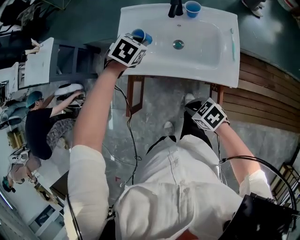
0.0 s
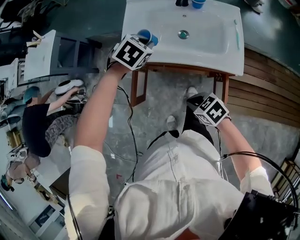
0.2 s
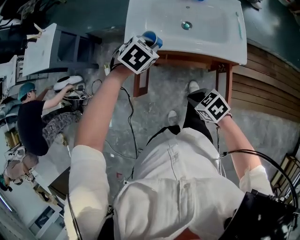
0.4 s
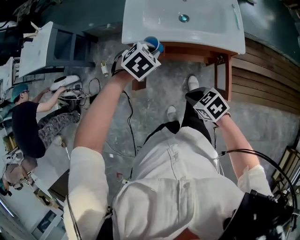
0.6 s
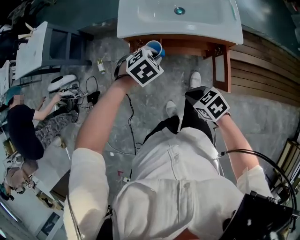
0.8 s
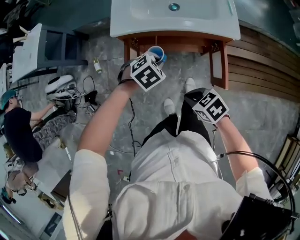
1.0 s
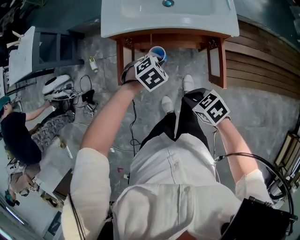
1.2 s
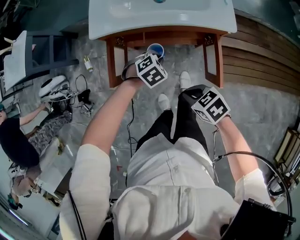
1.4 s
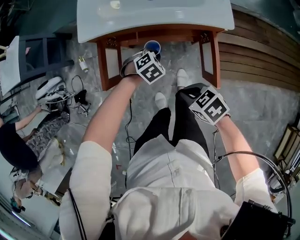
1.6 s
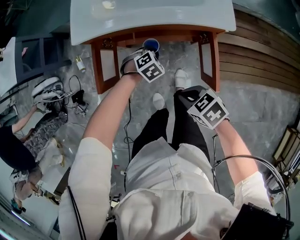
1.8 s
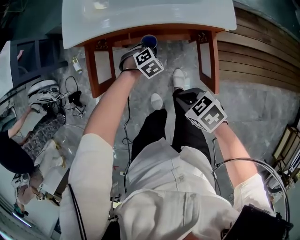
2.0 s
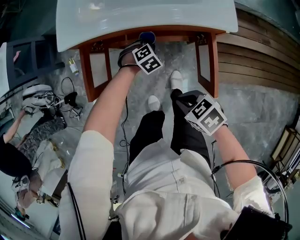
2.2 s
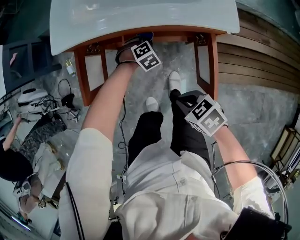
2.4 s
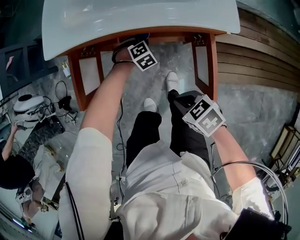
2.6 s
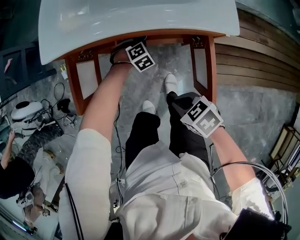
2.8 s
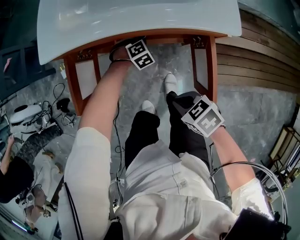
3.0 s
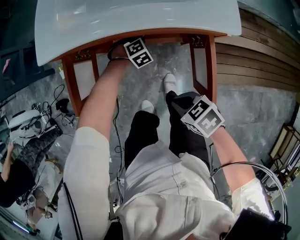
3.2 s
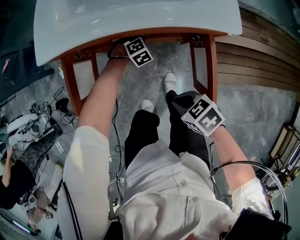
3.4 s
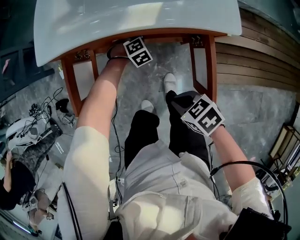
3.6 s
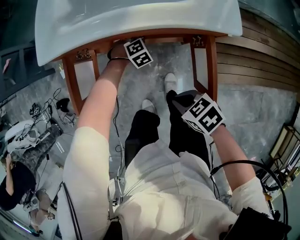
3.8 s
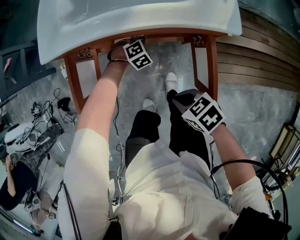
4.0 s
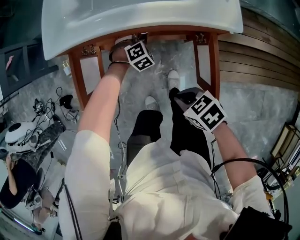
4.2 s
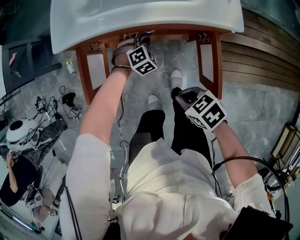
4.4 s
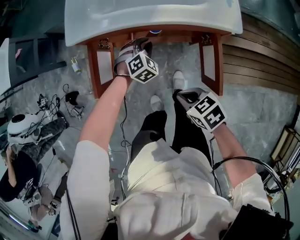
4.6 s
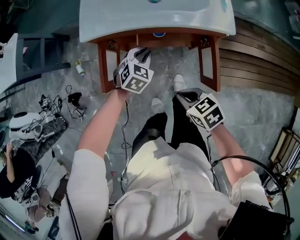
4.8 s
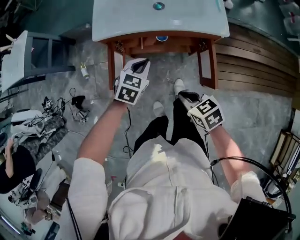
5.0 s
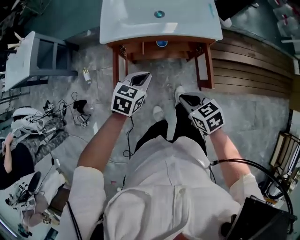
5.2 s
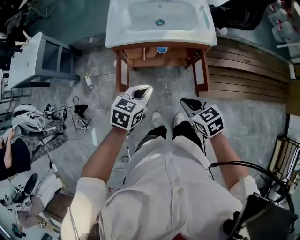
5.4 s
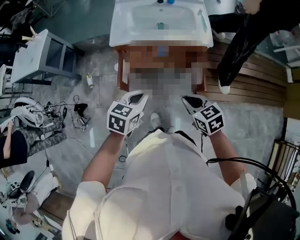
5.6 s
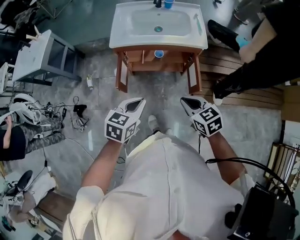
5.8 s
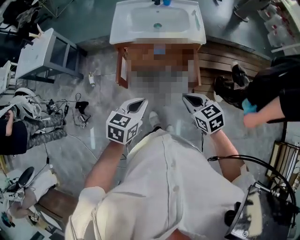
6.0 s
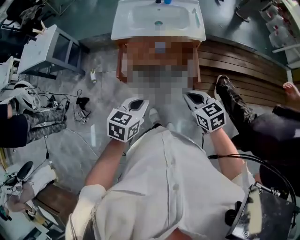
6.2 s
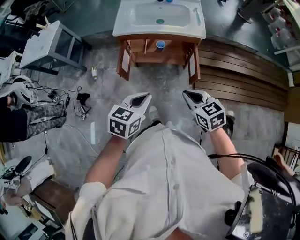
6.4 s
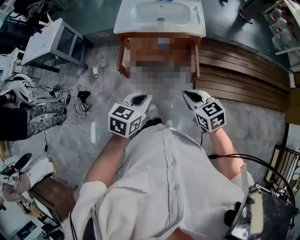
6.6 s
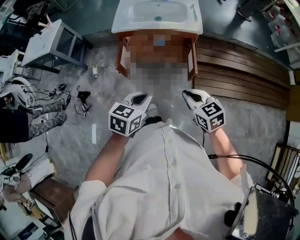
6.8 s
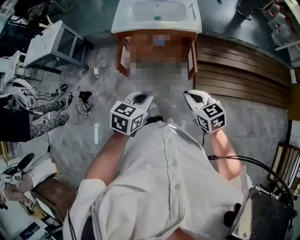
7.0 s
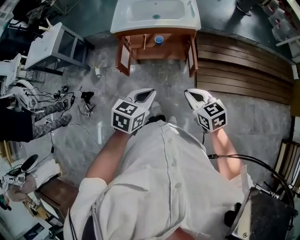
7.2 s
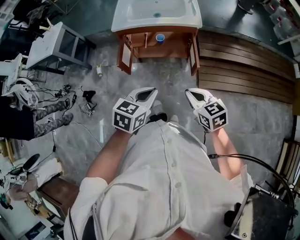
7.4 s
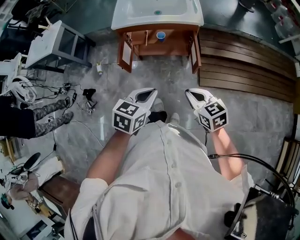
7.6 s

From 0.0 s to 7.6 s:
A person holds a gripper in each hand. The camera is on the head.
From 0.0 s to 1.6 s: The left gripper shifts by roughly 35 cm, and rotates about 20 degrees. The right gripper moves about 15 cm.
From 1.6 s to 3.0 s: The right gripper moves downward, about 10 cm, while the left gripper heads downward, covering about 15 cm.
From 3.0 s to 4.6 s: The right gripper travels upward by roughly 5 cm. Meanwhile the left gripper goes some 15 cm upward and to the left.
From 4.6 s to 6.0 s: The left gripper moves upward, about 35 cm, and rotates around the line of its fingers by approximately 50 degrees, counterclockwise from behind. Meanwhile the right gripper shifts some 25 cm upward, and swivels roughly 30 degrees.
From 6.0 s to 7.6 s: The left gripper is displaced backward and to the right by some 10 cm, while the right gripper travels backward by roughly 10 cm.

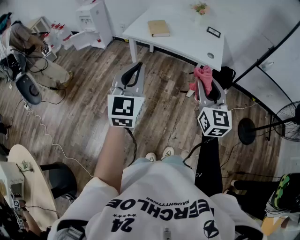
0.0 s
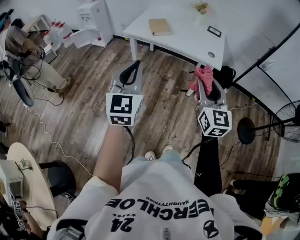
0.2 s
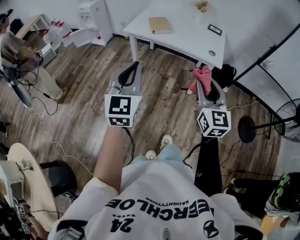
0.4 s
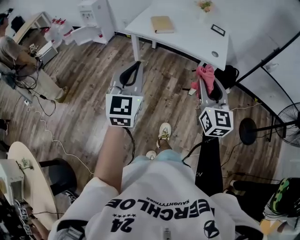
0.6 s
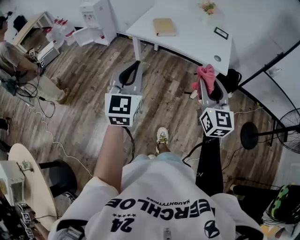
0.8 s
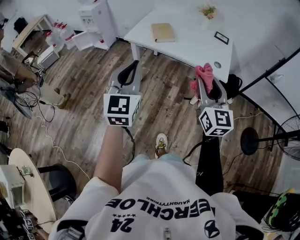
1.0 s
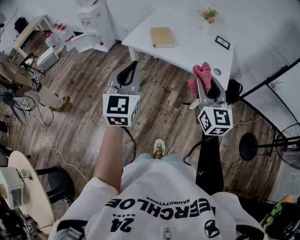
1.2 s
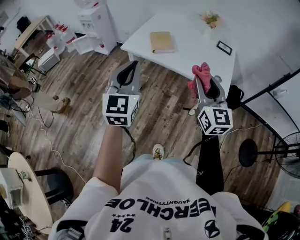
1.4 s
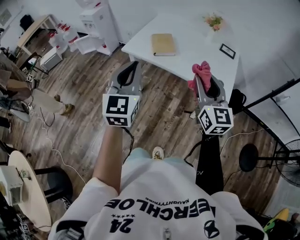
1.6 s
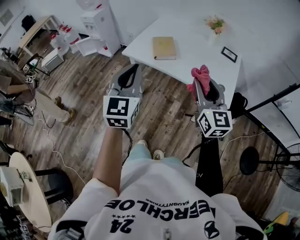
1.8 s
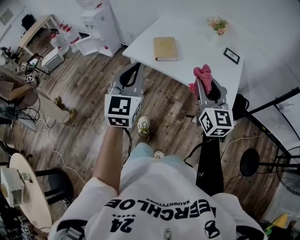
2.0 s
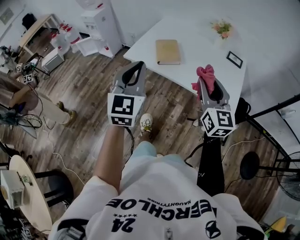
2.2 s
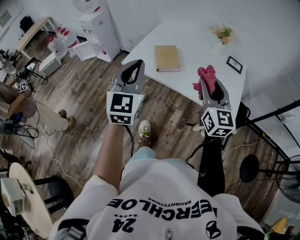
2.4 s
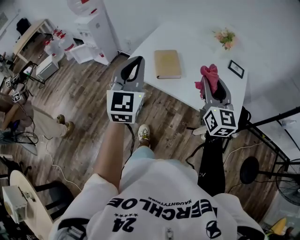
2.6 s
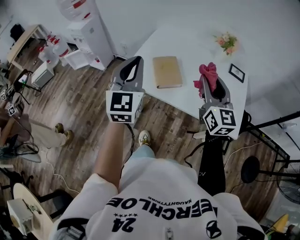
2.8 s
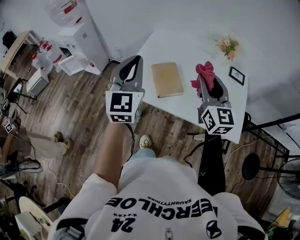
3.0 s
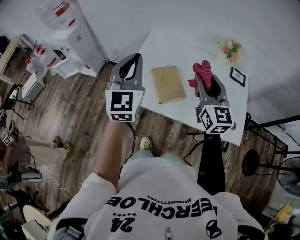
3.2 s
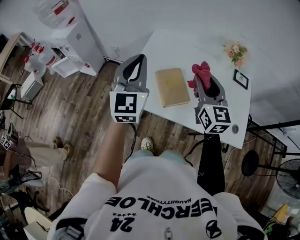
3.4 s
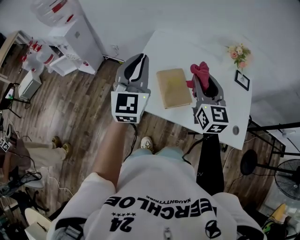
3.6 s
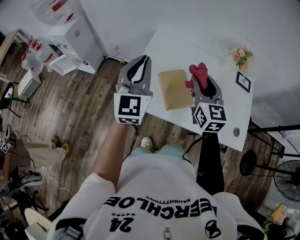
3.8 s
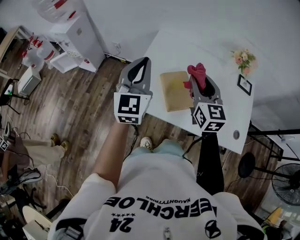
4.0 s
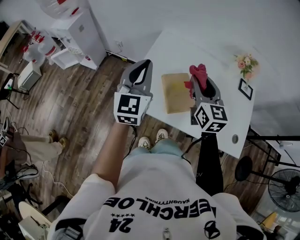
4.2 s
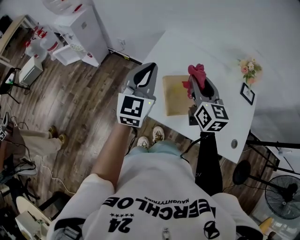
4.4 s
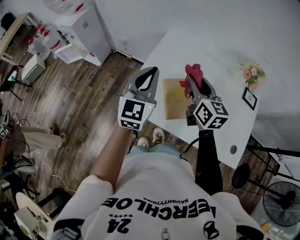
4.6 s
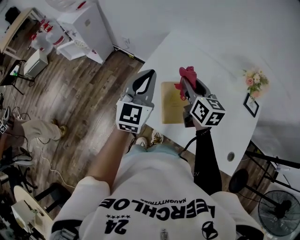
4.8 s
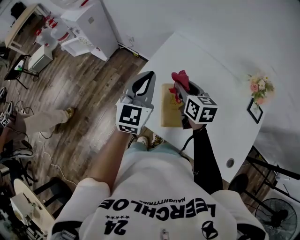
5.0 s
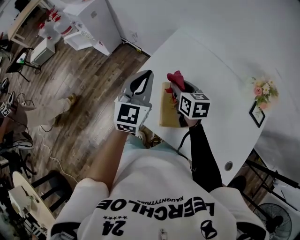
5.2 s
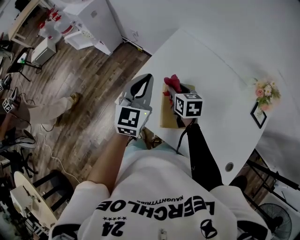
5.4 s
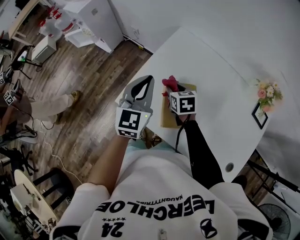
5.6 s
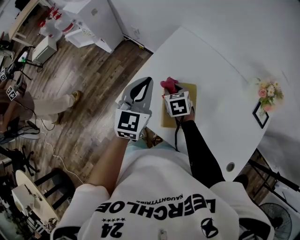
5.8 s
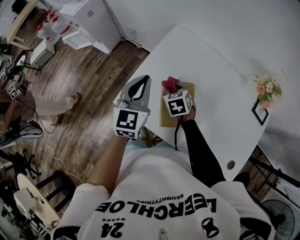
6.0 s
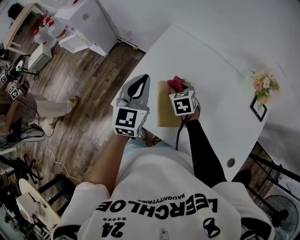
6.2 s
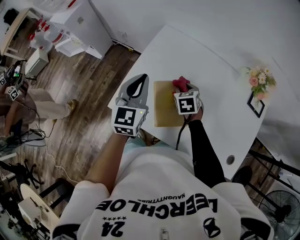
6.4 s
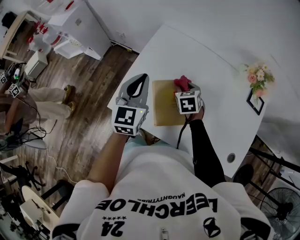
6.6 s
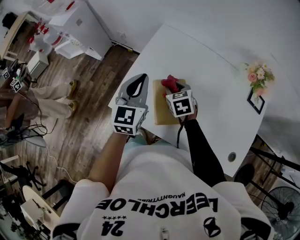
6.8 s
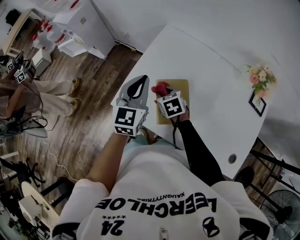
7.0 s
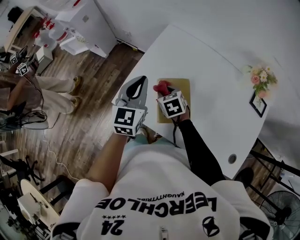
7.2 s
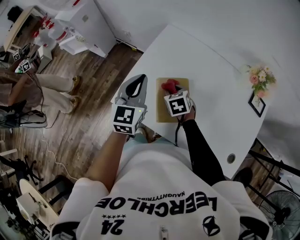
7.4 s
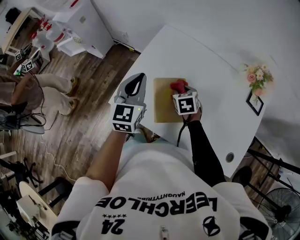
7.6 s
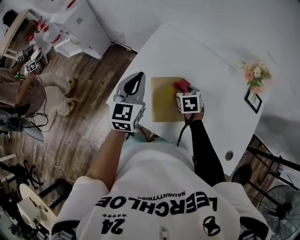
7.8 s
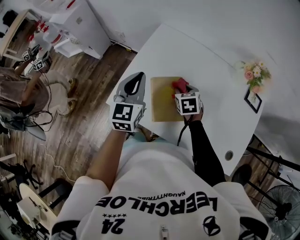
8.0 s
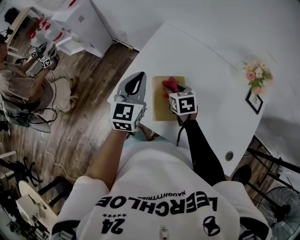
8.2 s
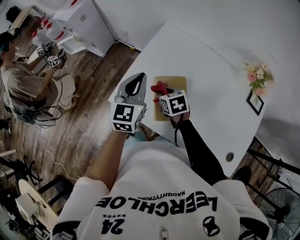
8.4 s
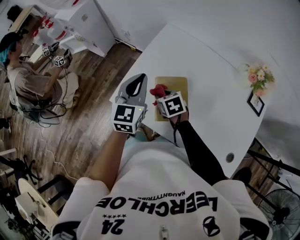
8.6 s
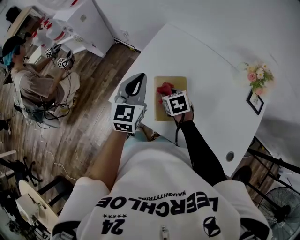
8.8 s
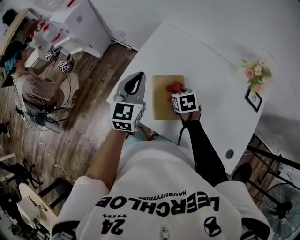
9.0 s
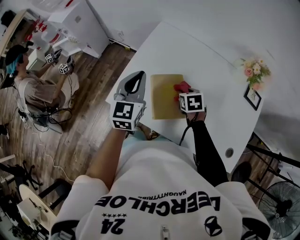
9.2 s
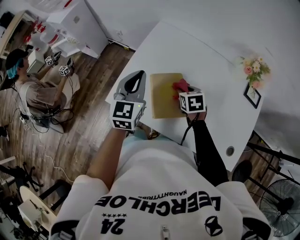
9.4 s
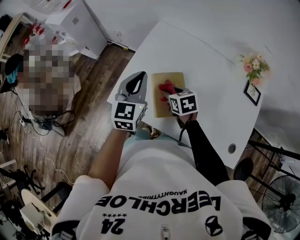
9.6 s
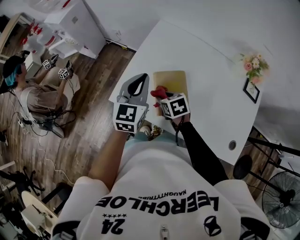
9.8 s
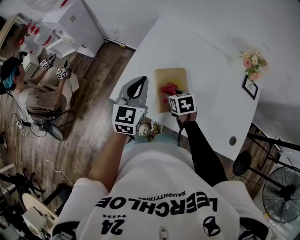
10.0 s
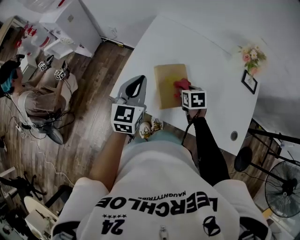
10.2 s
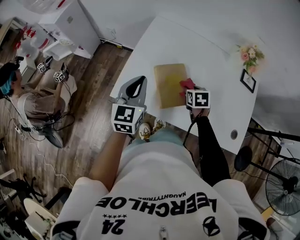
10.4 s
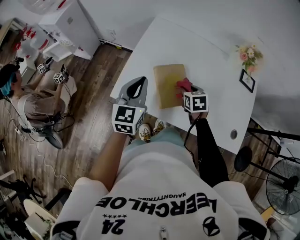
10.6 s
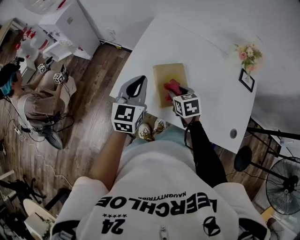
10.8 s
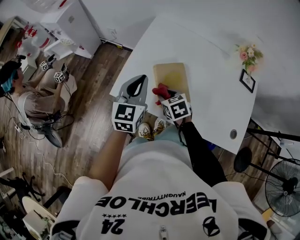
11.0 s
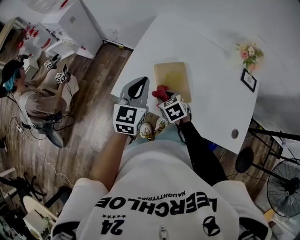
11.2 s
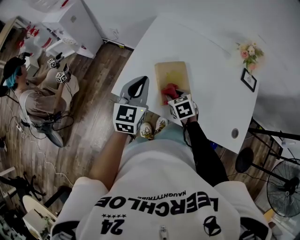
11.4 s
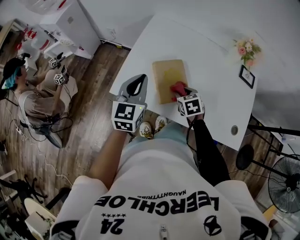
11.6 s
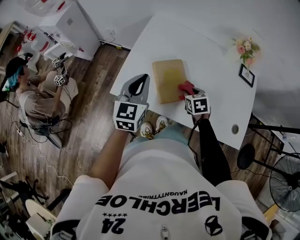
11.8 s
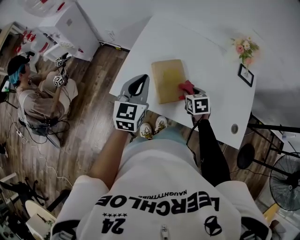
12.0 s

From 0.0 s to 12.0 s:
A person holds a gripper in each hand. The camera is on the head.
From 0.0 s to 1.6 s: Both grippers move forward, roughly 25 cm.
From 1.6 s to 3.0 s: The grippers both shift forward by about 35 cm.
From 3.0 s to 4.4 s: The left gripper heads forward and downward, covering some 15 cm; the right gripper heads forward, to the left and downward, covering roughly 20 cm.
From 4.4 s to 6.0 s: The right gripper moves downward, about 25 cm, and points its fingers approximately 40 degrees further downward. The left gripper moves downward, about 10 cm.
From 6.0 s to 7.6 s: The right gripper goes left and right, approximately 10 cm each way, reversing 2 times.
From 7.6 s to 9.0 s: The right gripper goes to the left and returns, about 10 cm each way.
From 9.0 s to 10.4 s: The left gripper is displaced backward by some 5 cm. The right gripper moves left and right over approximately 15 cm, changing direction 2 times.
From 10.4 s to 12.0 s: The right gripper moves roughly 15 cm to the left and comes back.

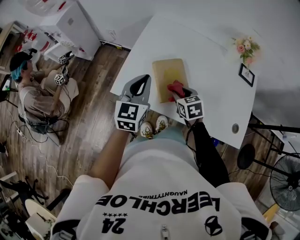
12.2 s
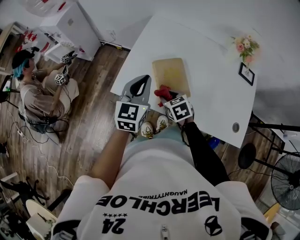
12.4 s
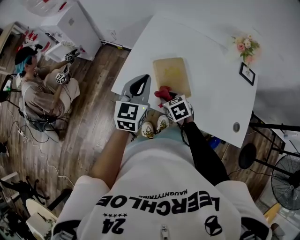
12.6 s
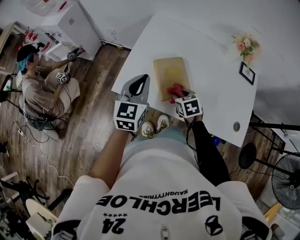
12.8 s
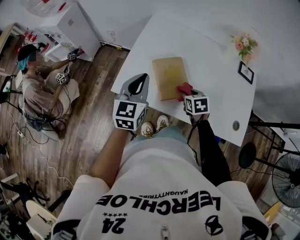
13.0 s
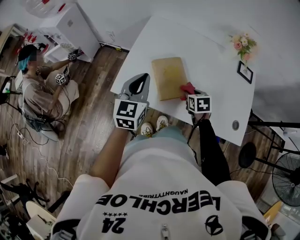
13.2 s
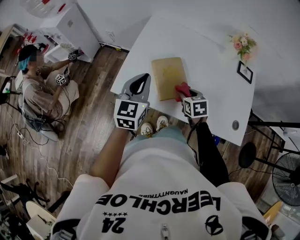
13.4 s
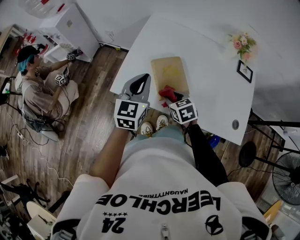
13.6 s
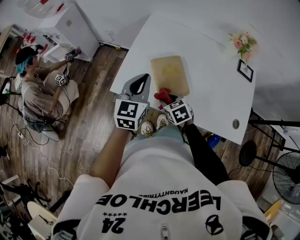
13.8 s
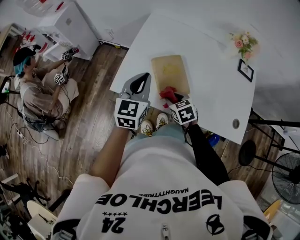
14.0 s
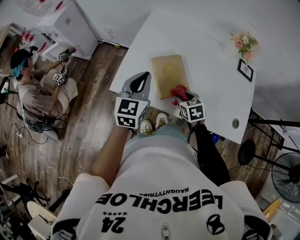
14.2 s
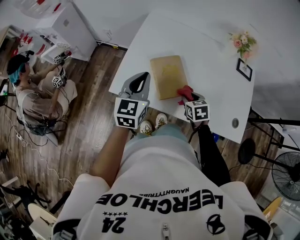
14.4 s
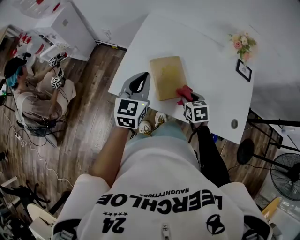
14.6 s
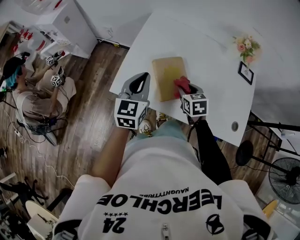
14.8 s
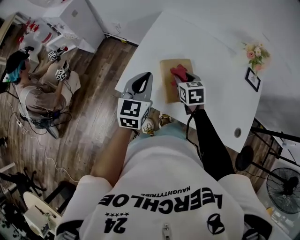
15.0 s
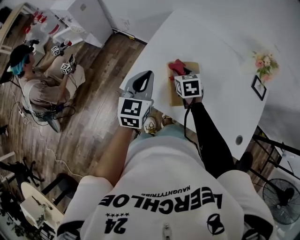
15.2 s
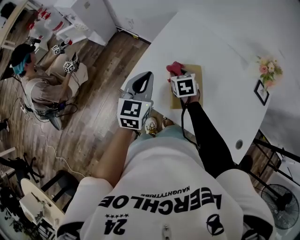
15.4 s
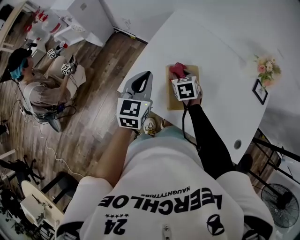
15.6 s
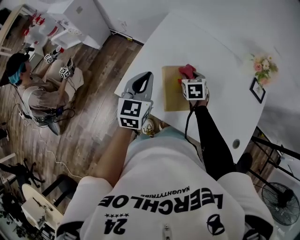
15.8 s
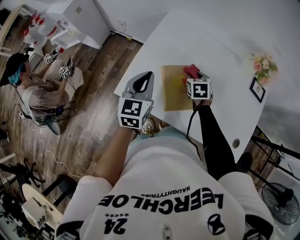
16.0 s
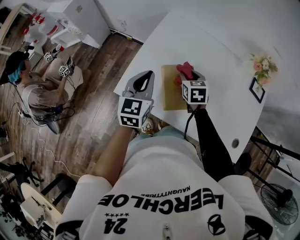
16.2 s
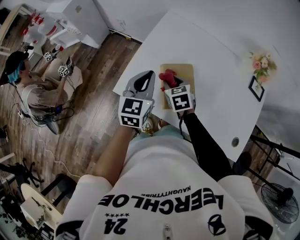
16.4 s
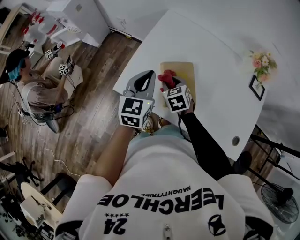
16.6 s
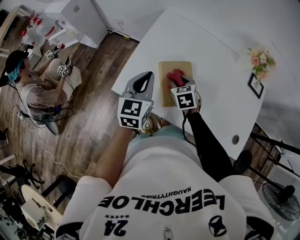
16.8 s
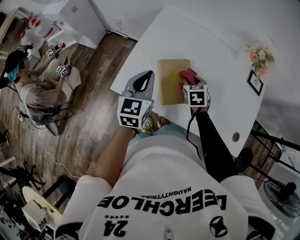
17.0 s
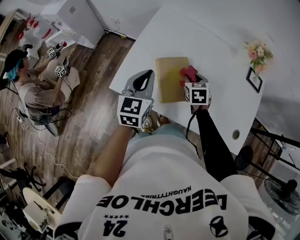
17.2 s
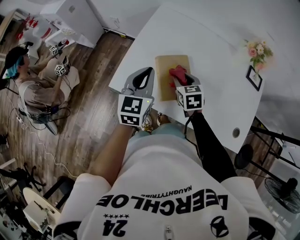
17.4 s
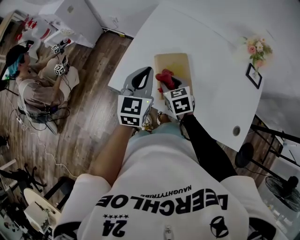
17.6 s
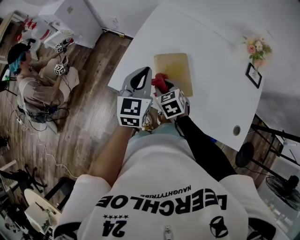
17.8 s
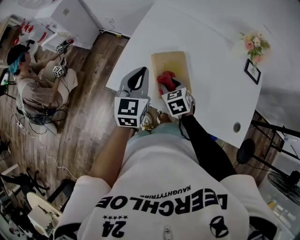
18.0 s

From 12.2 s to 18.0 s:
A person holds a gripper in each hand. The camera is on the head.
From 12.2 s to 13.6 s: The right gripper swings left and right, some 15 cm each way, with 2 reversals.
From 13.6 s to 15.0 s: The right gripper travels forward by about 10 cm.
From 15.0 s to 16.6 s: The right gripper swings left and right, roughly 15 cm each way, with 2 reversals.
From 16.6 s to 18.0 s: The right gripper goes left and right, approximately 15 cm each way, reversing 2 times.
